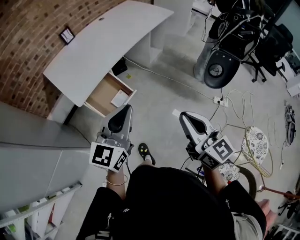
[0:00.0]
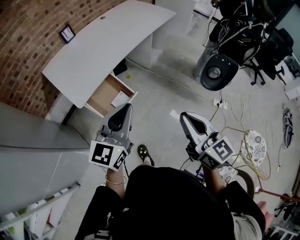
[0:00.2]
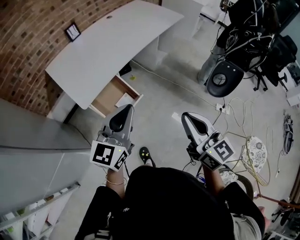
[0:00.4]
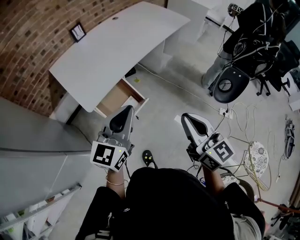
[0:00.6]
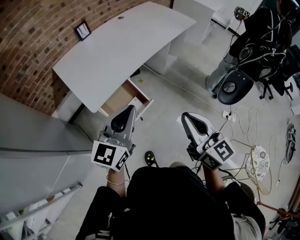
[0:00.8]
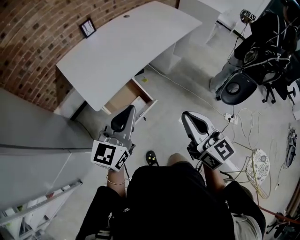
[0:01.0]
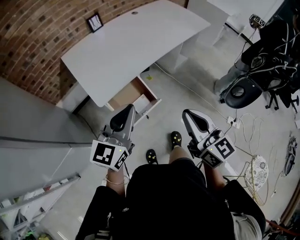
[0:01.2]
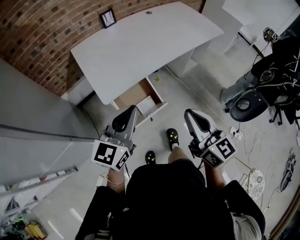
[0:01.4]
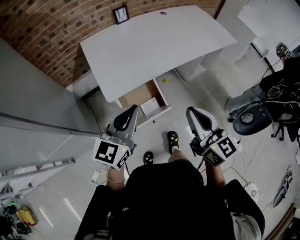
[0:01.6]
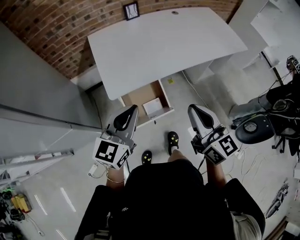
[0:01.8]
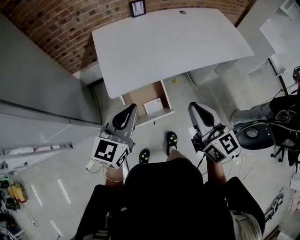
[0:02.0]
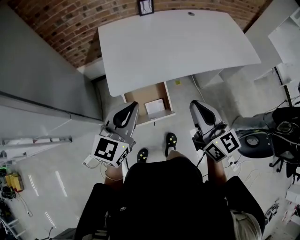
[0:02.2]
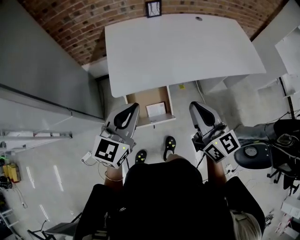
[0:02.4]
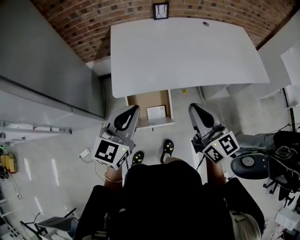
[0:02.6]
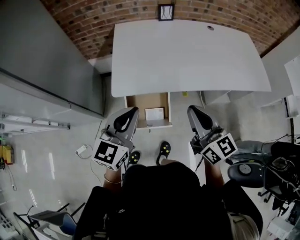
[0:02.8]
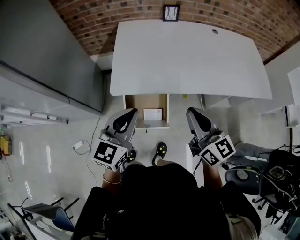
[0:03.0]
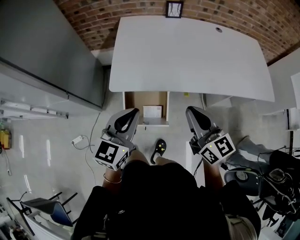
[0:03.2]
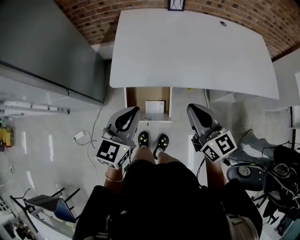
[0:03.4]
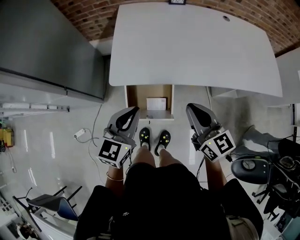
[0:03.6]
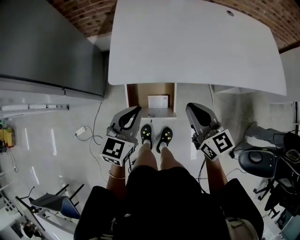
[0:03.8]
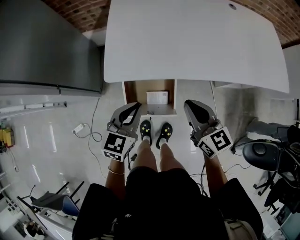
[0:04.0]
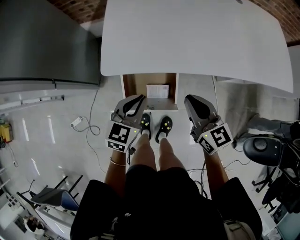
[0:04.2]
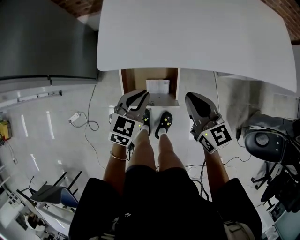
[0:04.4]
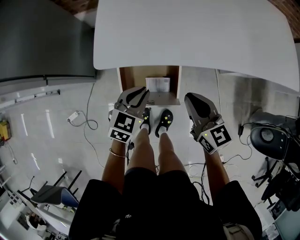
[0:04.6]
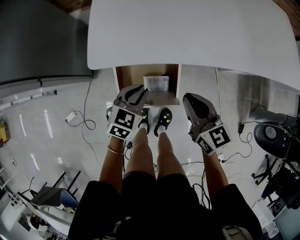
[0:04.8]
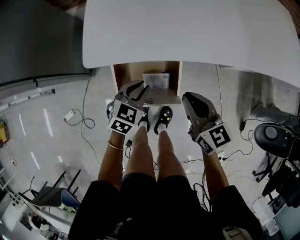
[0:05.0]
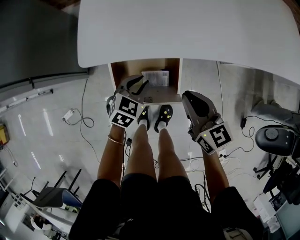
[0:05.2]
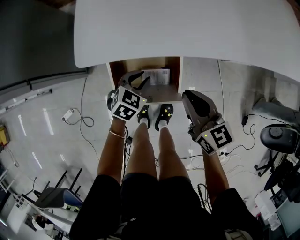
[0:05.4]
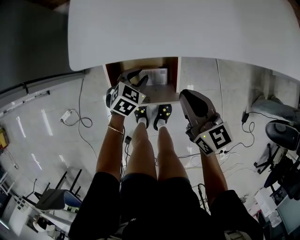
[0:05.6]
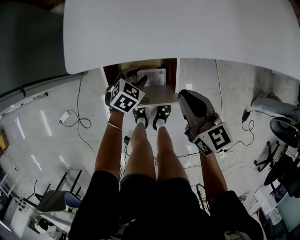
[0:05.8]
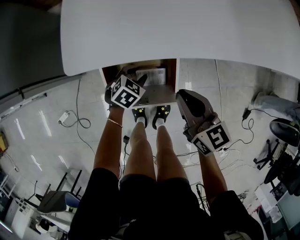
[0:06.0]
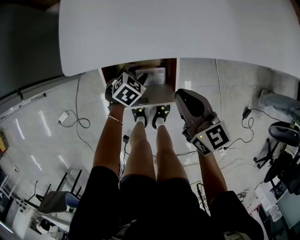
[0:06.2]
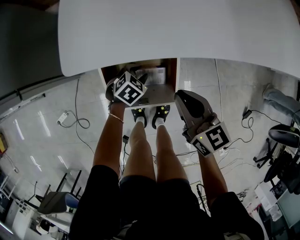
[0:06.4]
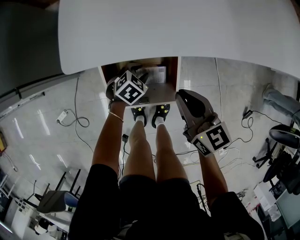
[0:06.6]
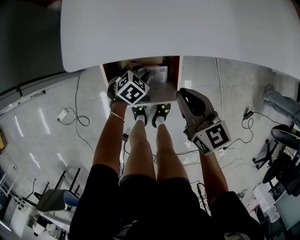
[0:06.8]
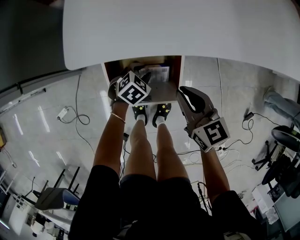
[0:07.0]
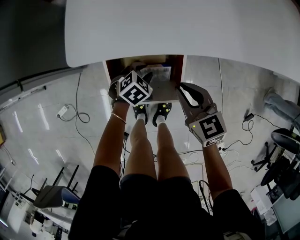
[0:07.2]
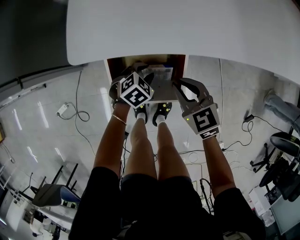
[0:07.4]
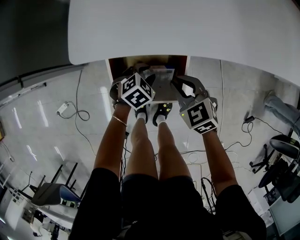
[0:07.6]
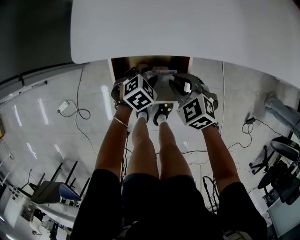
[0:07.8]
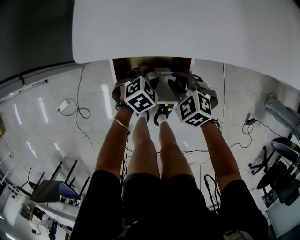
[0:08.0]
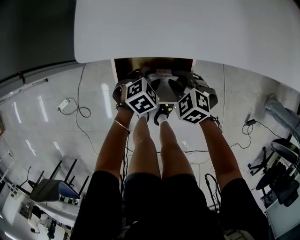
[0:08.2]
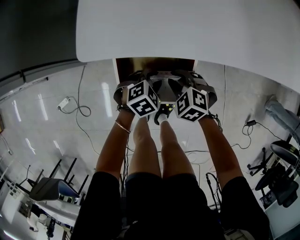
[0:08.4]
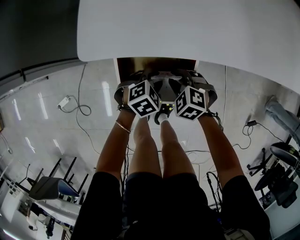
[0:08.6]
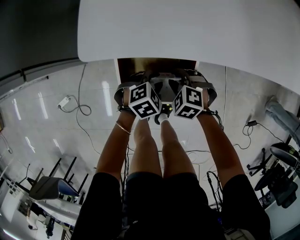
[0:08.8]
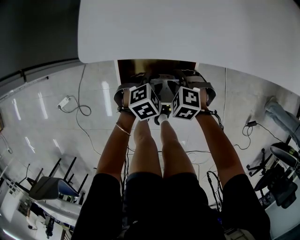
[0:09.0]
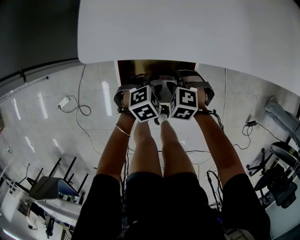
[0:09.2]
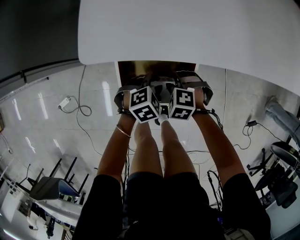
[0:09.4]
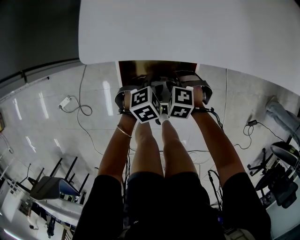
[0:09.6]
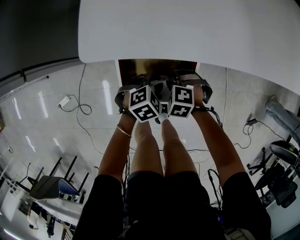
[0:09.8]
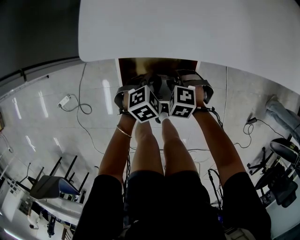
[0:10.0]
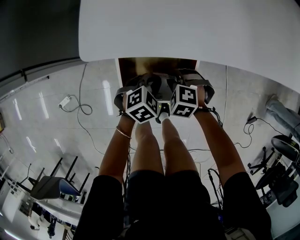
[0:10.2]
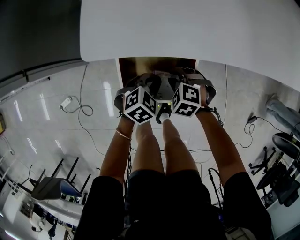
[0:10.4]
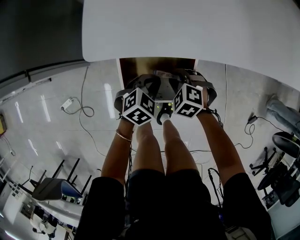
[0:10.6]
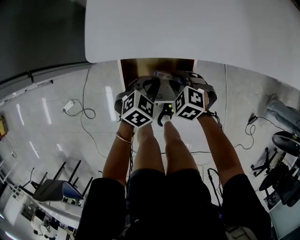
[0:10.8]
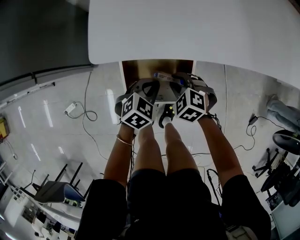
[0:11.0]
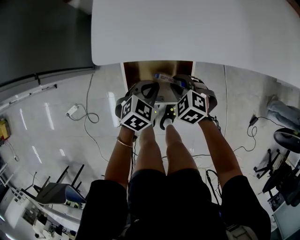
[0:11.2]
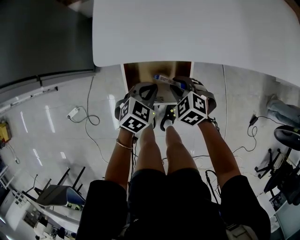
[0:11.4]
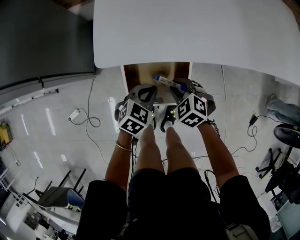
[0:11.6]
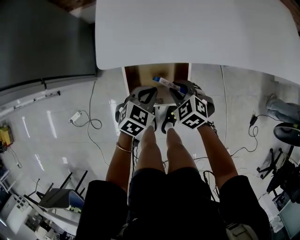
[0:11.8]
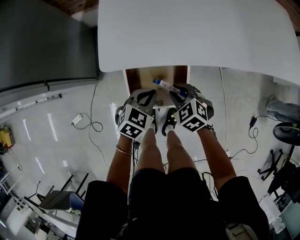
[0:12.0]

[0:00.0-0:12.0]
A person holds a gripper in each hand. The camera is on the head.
0:00.0 to 0:01.6: The left gripper shifts about 20 cm to the left and forward, and rotates some 20 degrees; the right gripper moves forward and to the left, about 25 cm, and swivels some 20 degrees.
0:01.6 to 0:03.0: The left gripper changes place by roughly 10 cm, and swivels roughly 30 degrees. The right gripper changes place by approximately 15 cm, and rotates about 30 degrees.
0:03.0 to 0:04.4: Both grippers travel together downward, about 25 cm. The left gripper turns by approximately 20 degrees.
0:04.4 to 0:06.0: The right gripper travels downward by roughly 10 cm. Meanwhile the left gripper shifts approximately 25 cm downward, swivels approximately 30 degrees, and opens its fingers.
0:06.0 to 0:07.6: The right gripper goes about 10 cm downward, and swivels some 40 degrees.
0:07.6 to 0:09.0: The right gripper is displaced downward by about 10 cm, changes its angle by roughly 40 degrees, and opens.
0:09.0 to 0:10.4: The left gripper closes its fingers.
0:10.4 to 0:12.0: Both grippers travel together upward, about 10 cm. The right gripper turns by approximately 30 degrees.

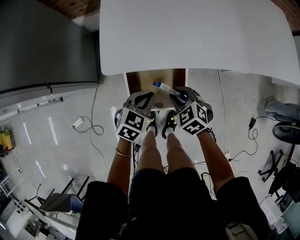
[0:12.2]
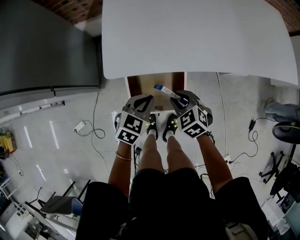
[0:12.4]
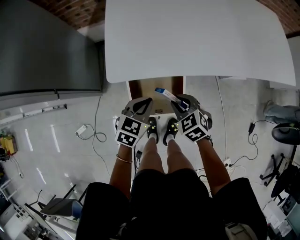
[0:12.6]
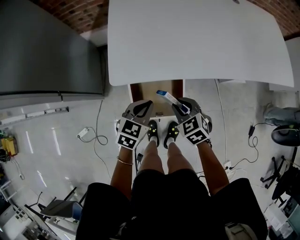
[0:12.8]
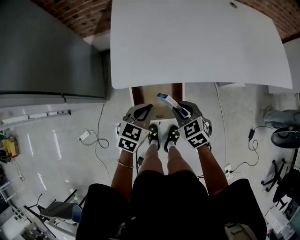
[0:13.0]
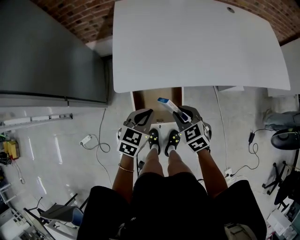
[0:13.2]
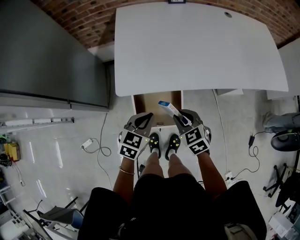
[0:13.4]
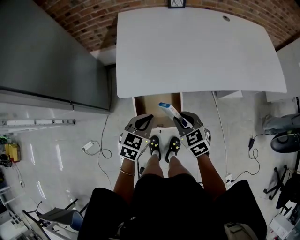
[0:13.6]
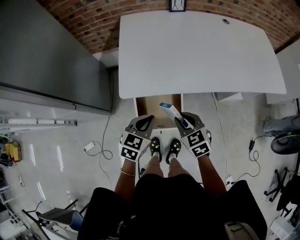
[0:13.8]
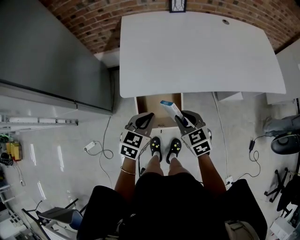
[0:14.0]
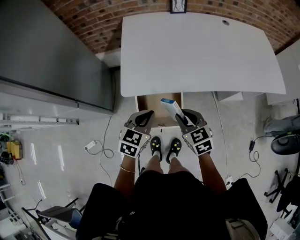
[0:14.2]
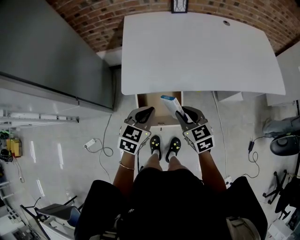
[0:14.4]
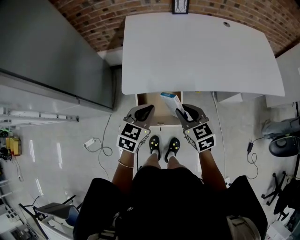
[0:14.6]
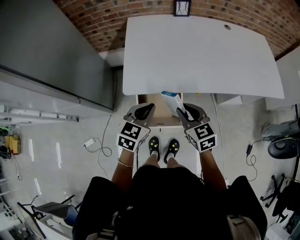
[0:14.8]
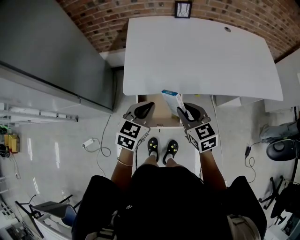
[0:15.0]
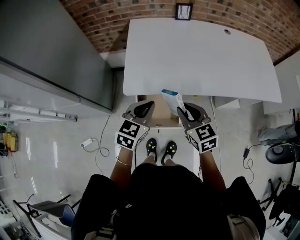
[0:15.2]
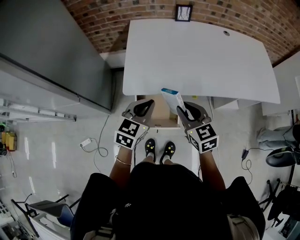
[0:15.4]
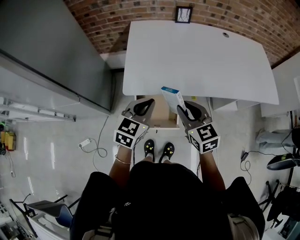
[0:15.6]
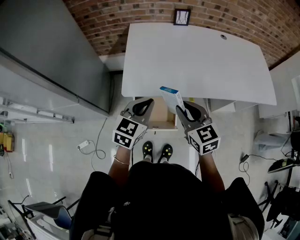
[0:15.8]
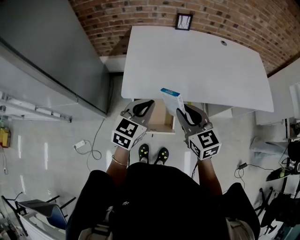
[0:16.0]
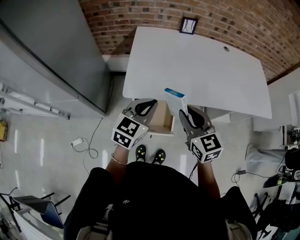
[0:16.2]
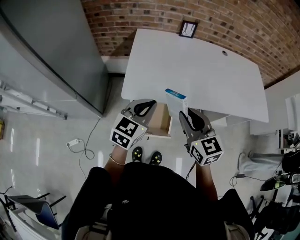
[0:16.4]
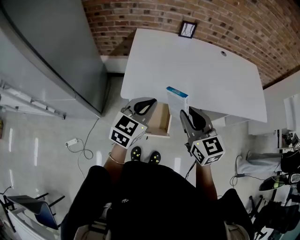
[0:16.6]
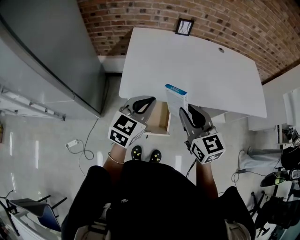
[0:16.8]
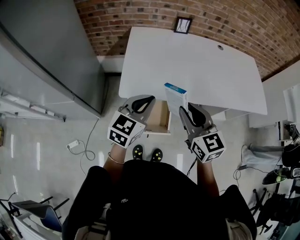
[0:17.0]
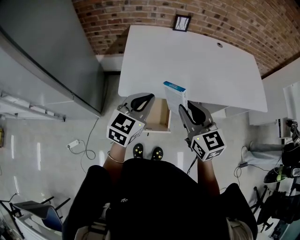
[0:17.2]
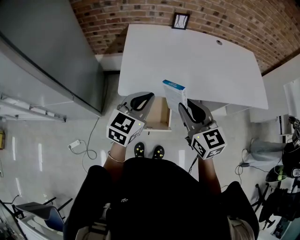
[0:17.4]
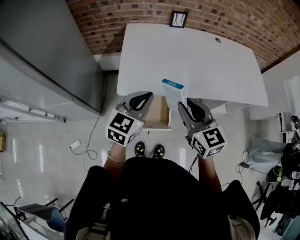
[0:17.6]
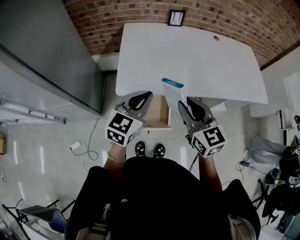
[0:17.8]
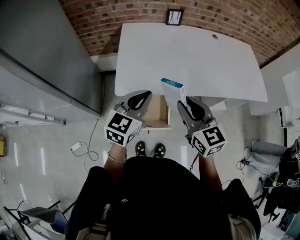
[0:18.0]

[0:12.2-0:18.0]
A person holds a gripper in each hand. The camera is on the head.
0:12.2 to 0:13.6: The two grippers go roughly 15 cm upward.
0:13.6 to 0:15.0: Both grippers travel together upward, some 10 cm.
0:15.0 to 0:16.6: Both grippers move upward, roughly 10 cm.
0:16.6 to 0:18.0: Both grippers stay about where they are.

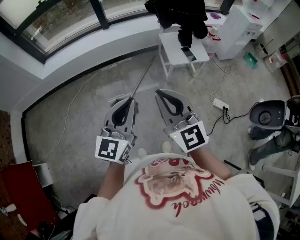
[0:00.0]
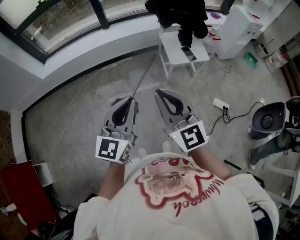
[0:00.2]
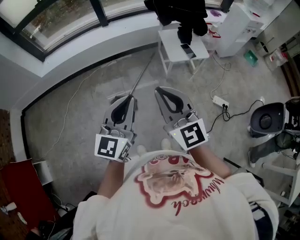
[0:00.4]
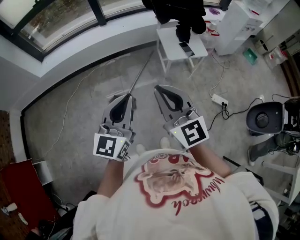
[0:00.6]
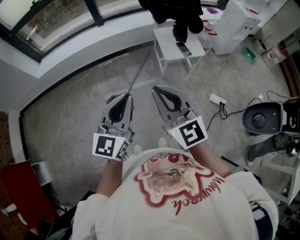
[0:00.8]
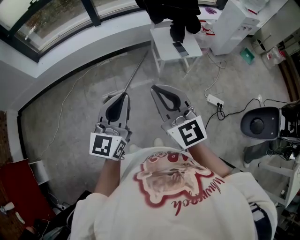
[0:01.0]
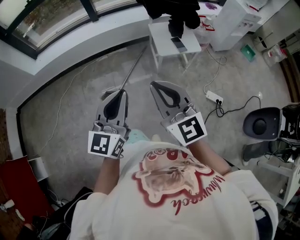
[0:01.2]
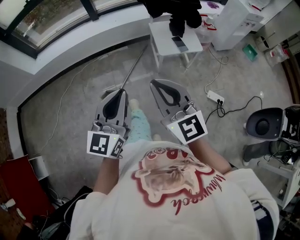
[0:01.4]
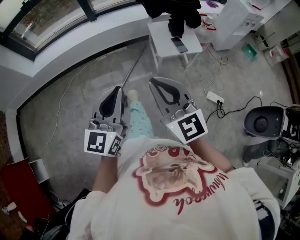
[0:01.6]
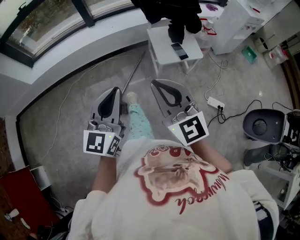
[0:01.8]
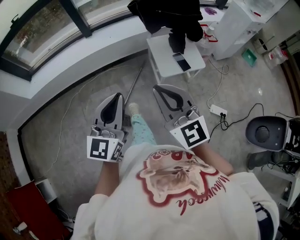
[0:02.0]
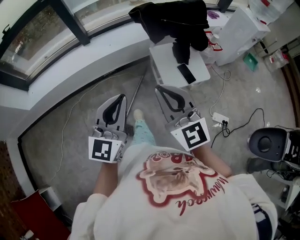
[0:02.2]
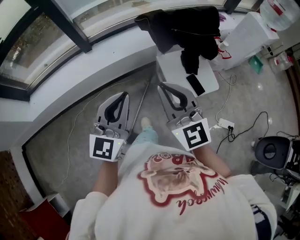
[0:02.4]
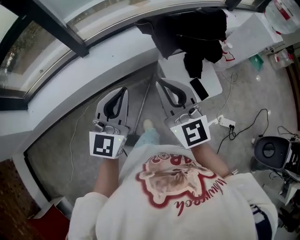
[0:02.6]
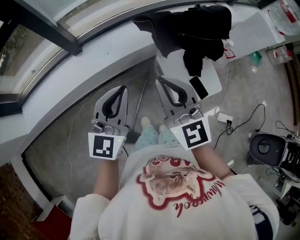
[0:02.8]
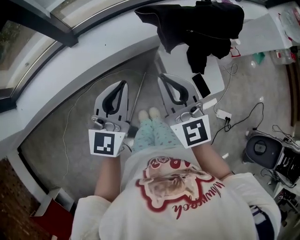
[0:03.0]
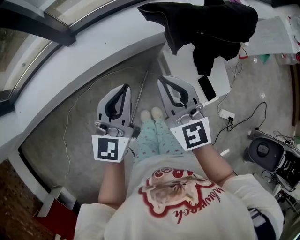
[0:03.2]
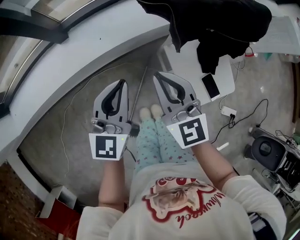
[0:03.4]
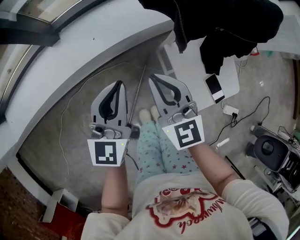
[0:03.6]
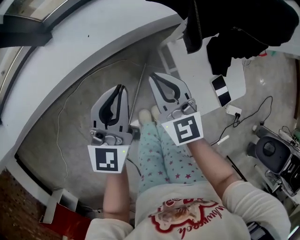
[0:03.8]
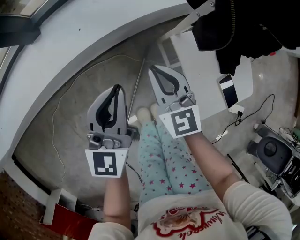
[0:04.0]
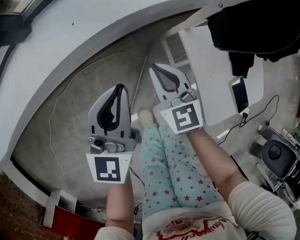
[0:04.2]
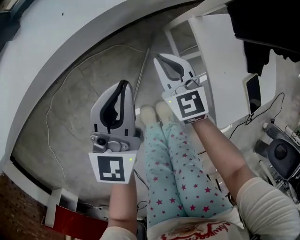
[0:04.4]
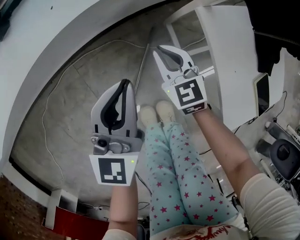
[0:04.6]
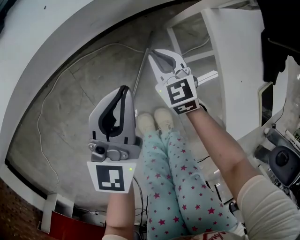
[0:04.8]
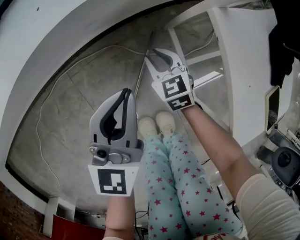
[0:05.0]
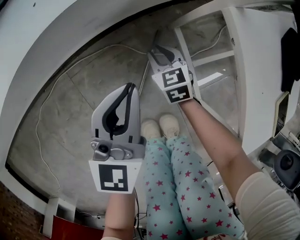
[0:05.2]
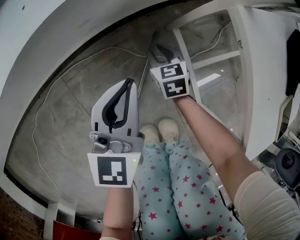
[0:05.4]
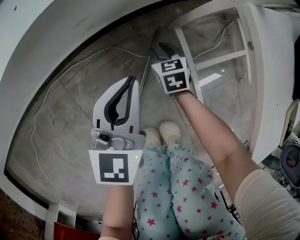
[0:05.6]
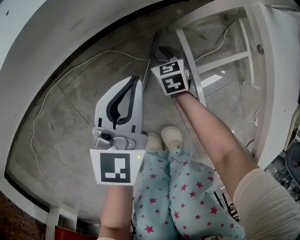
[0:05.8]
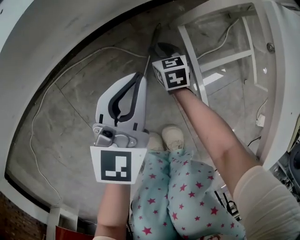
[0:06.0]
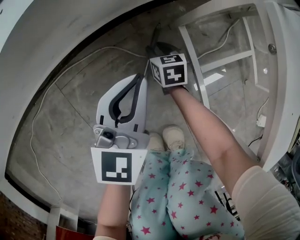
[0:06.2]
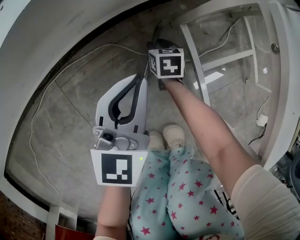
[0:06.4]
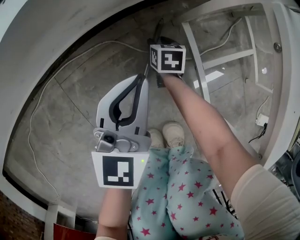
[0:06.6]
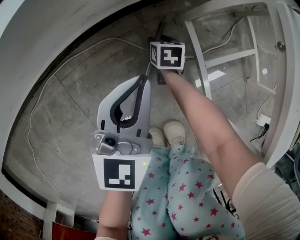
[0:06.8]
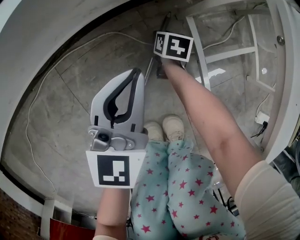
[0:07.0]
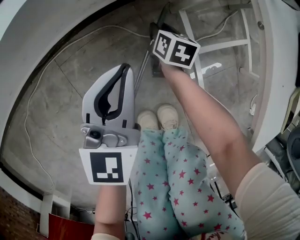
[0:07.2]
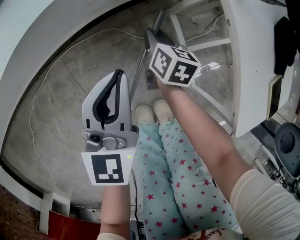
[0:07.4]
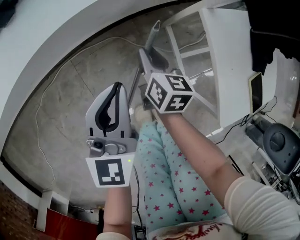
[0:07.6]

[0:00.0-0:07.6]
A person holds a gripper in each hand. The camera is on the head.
0:00.0 to 0:01.6: The grippers both shift to the right and forward by about 10 cm.
0:01.6 to 0:03.0: The two grippers travel together, forward, some 60 cm.
0:03.0 to 0:04.6: The grippers both shift downward by about 50 cm. The right gripper tilts its fingers roughly 30 degrees downward.
0:04.6 to 0:06.0: The right gripper shifts some 30 cm downward, rotates about 30 degrees, and opens its fingers. Meanwhile the left gripper shifts about 20 cm downward.
0:06.0 to 0:07.6: Both grippers travel together upward, approximately 25 cm. The right gripper turns by approximately 30 degrees.
